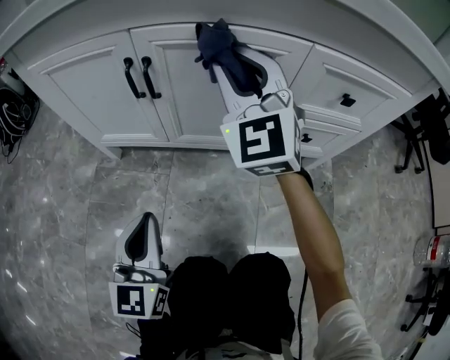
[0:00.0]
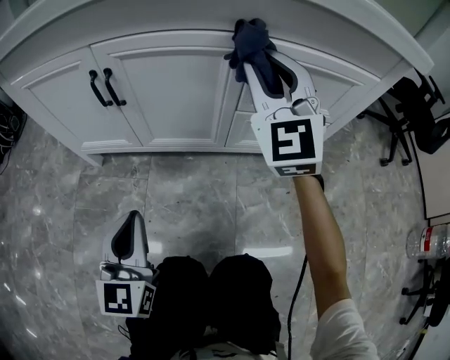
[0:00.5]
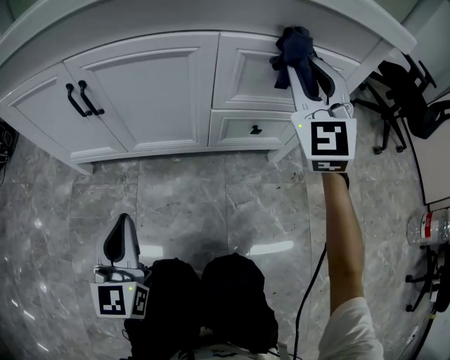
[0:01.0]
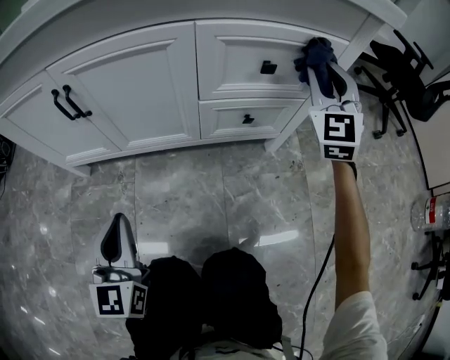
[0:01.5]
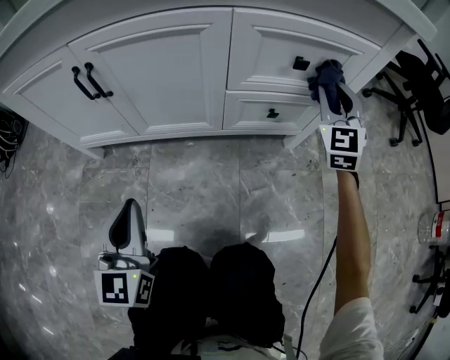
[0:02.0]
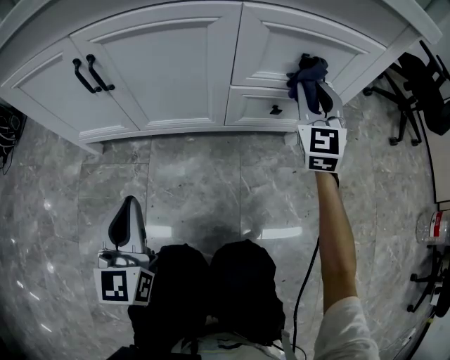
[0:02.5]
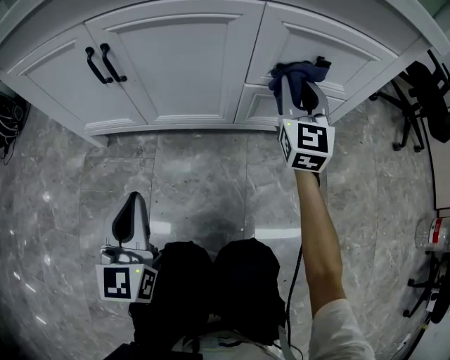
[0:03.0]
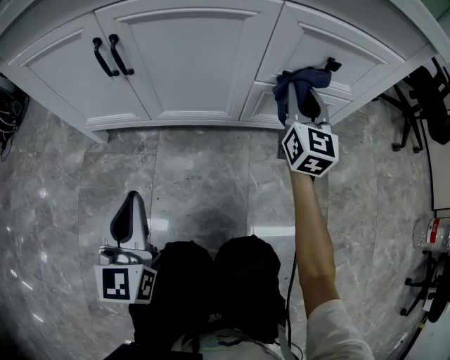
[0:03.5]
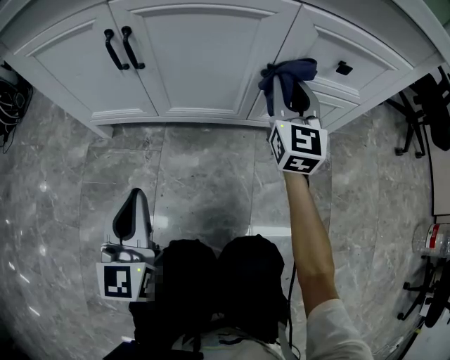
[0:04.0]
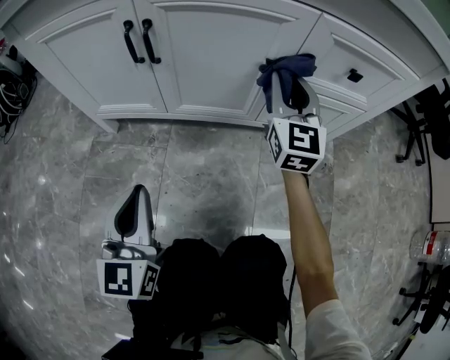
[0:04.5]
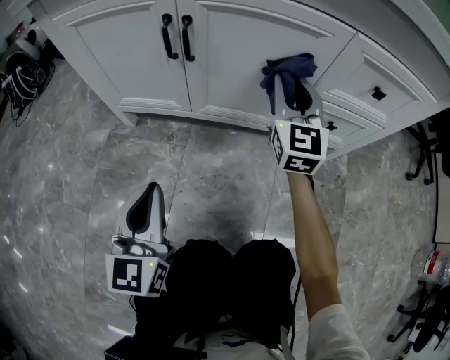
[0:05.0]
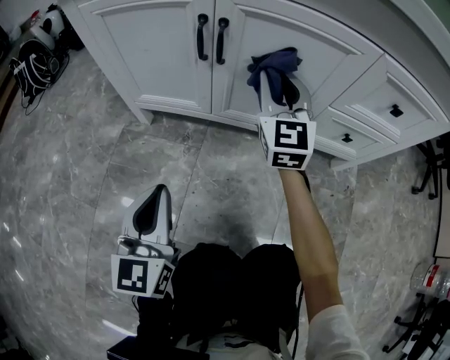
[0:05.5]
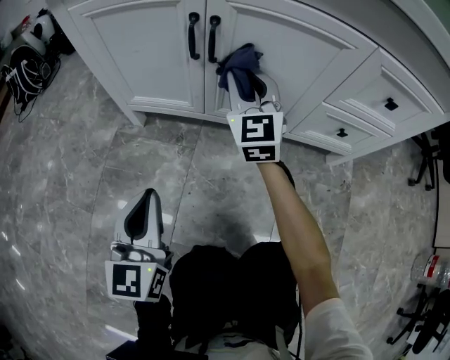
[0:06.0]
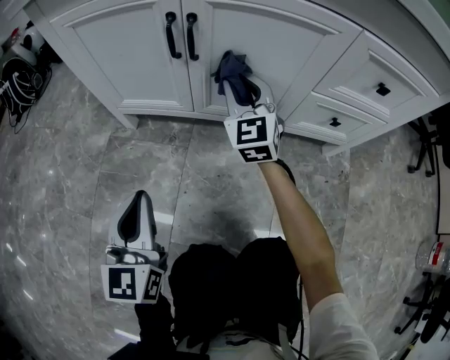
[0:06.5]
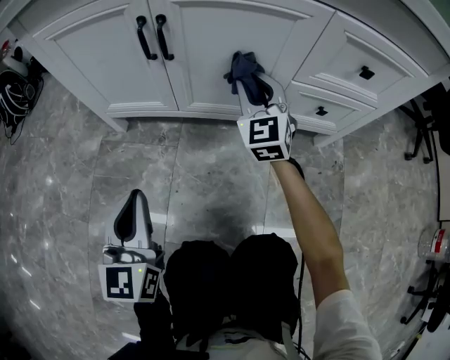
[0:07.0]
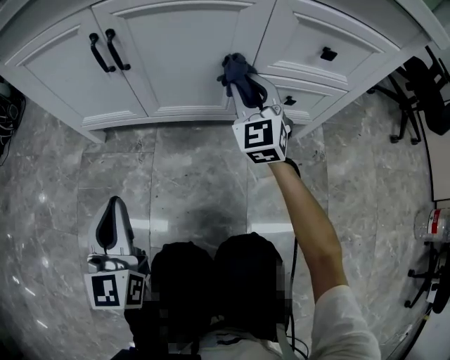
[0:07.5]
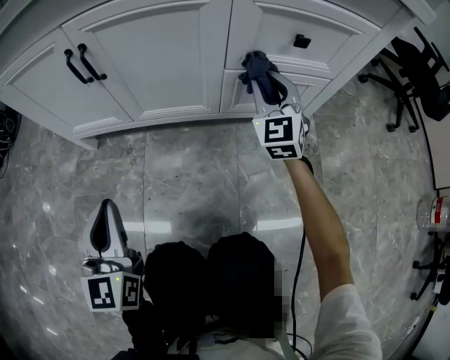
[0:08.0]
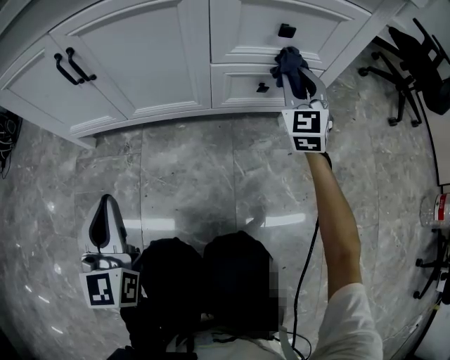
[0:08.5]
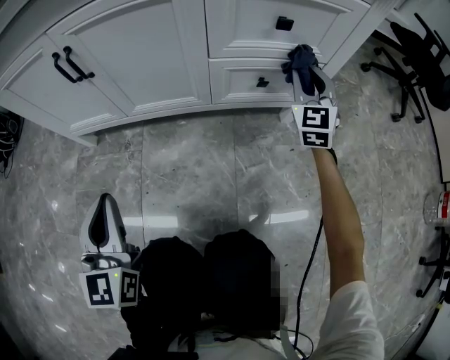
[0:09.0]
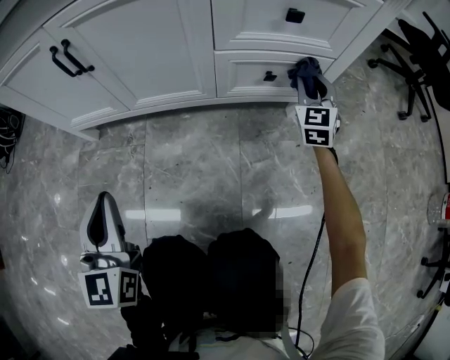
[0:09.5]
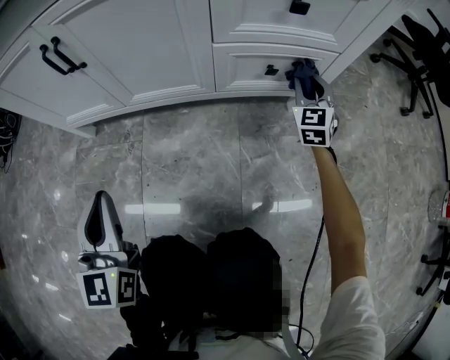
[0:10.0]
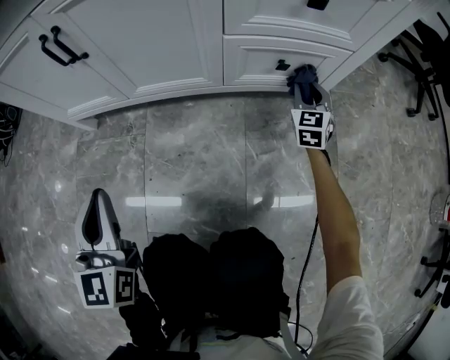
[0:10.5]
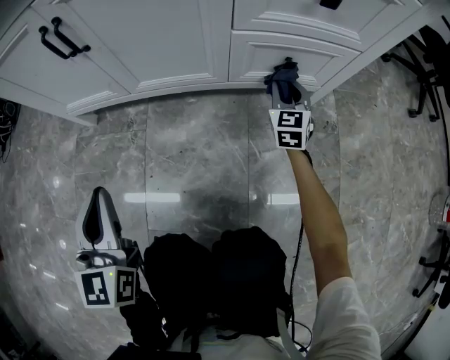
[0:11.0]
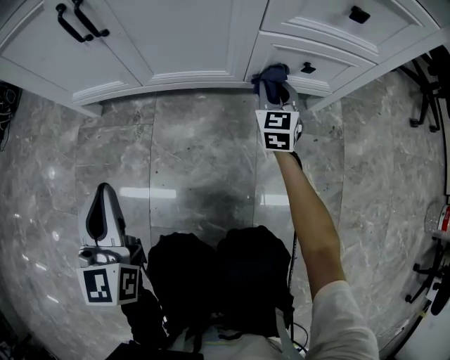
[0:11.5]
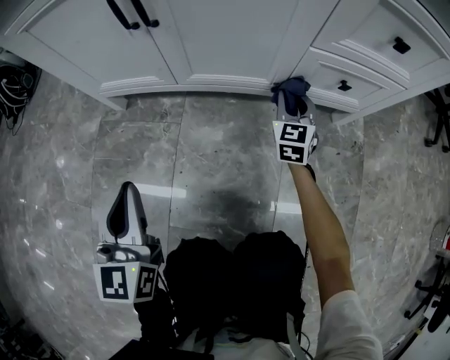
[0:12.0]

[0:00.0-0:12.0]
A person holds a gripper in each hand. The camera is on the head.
0:00.0 to 0:02.0: The right gripper is displaced to the right by about 35 cm, and rotates approximately 30 degrees; the left gripper shifts roughly 5 cm to the right.
0:02.0 to 0:04.0: The left gripper moves about 5 cm, while the right gripper travels to the left by about 20 cm, and rotates roughly 30 degrees.
0:04.0 to 0:06.0: The right gripper moves to the left, approximately 25 cm, and swivels roughly 20 degrees; the left gripper travels to the left by roughly 10 cm.
0:06.0 to 0:08.0: The left gripper goes about 10 cm to the right. The right gripper goes about 30 cm to the right, and swivels roughly 20 degrees.
0:08.0 to 0:10.0: The right gripper heads to the right and downward, covering about 20 cm.
0:10.0 to 0:12.0: The left gripper goes approximately 10 cm to the left, while the right gripper travels to the left by about 20 cm.

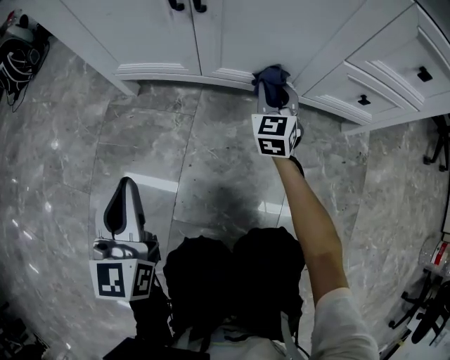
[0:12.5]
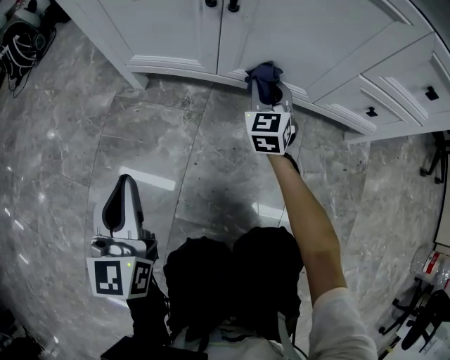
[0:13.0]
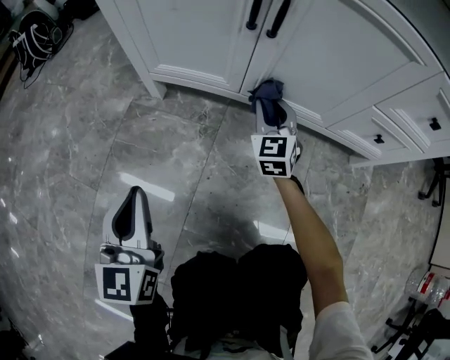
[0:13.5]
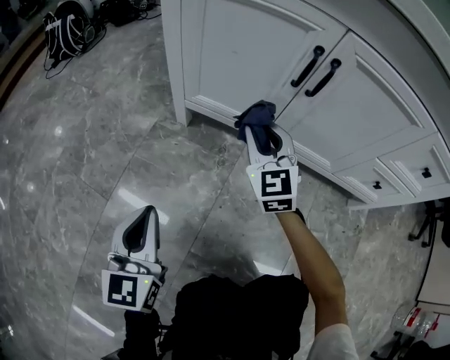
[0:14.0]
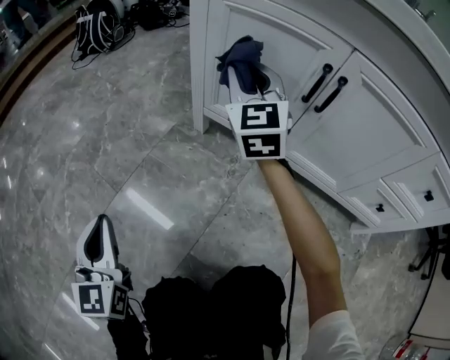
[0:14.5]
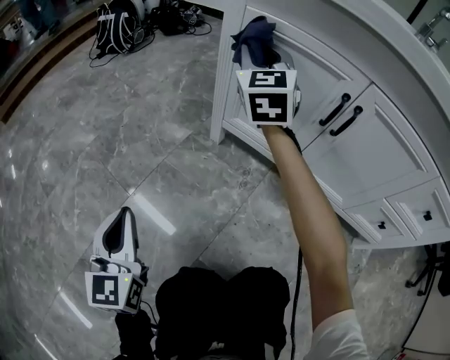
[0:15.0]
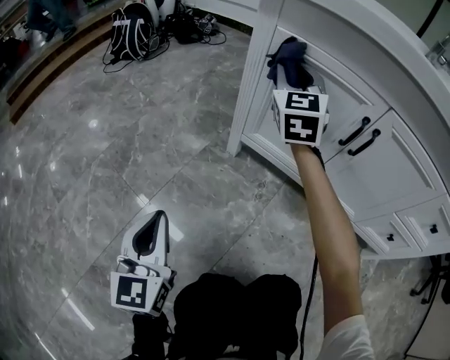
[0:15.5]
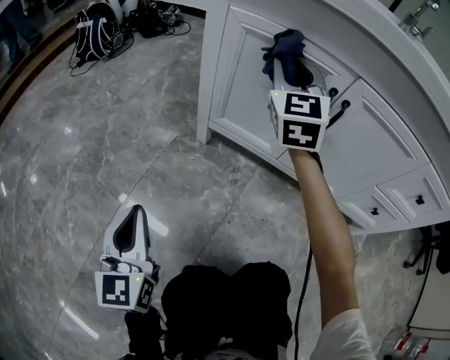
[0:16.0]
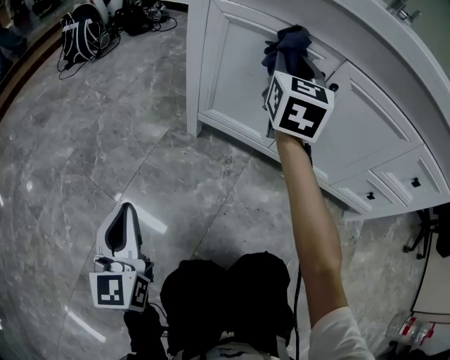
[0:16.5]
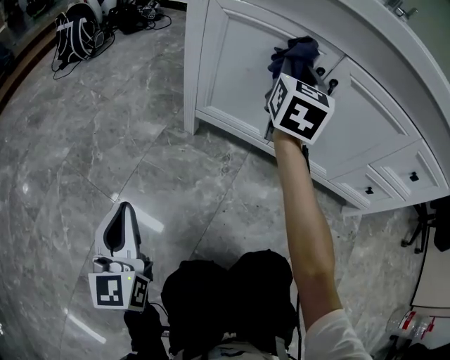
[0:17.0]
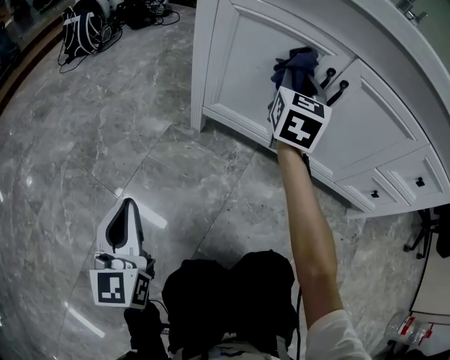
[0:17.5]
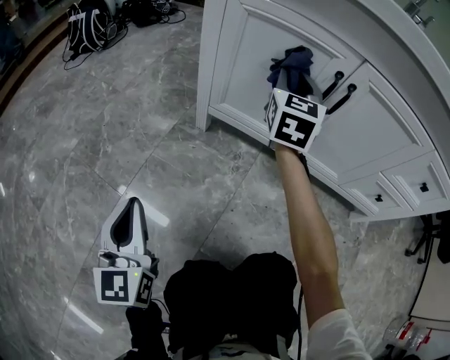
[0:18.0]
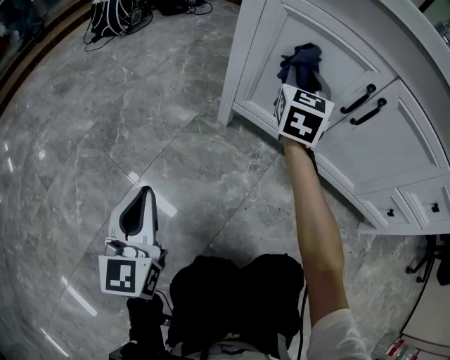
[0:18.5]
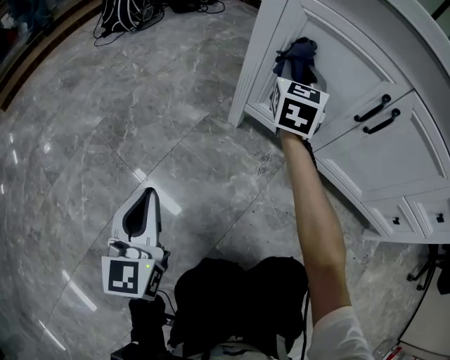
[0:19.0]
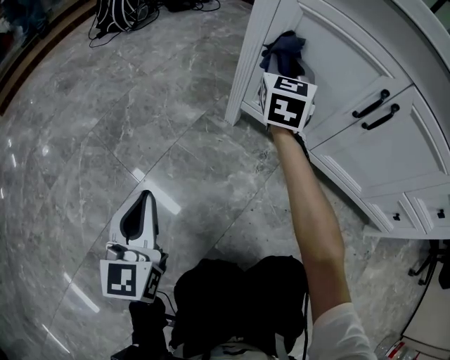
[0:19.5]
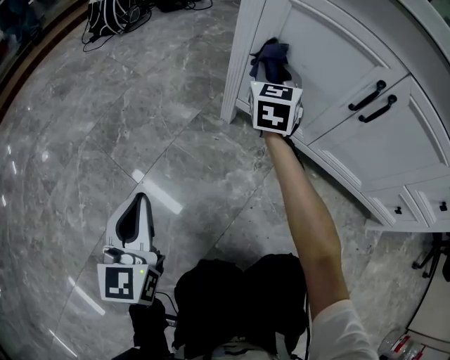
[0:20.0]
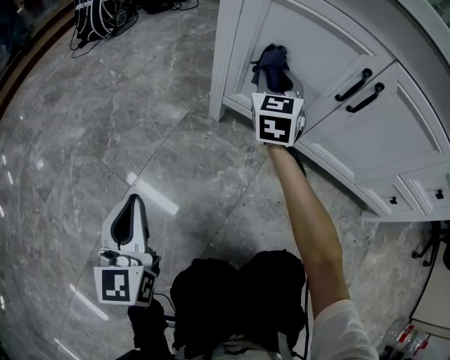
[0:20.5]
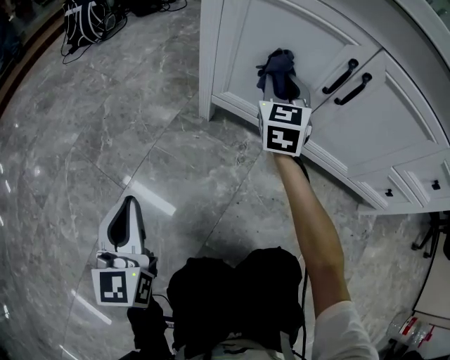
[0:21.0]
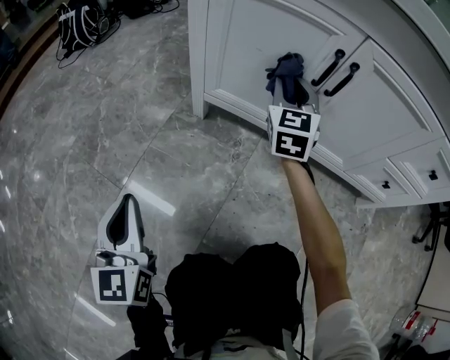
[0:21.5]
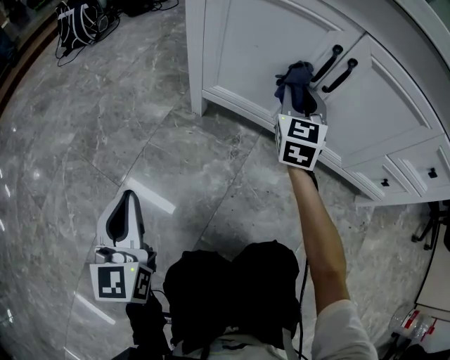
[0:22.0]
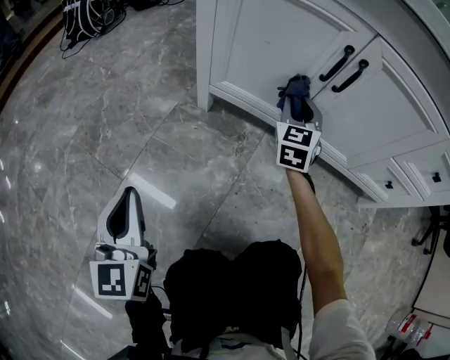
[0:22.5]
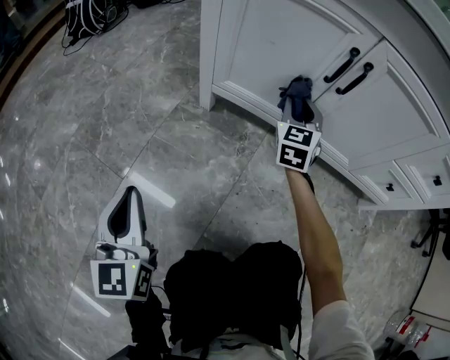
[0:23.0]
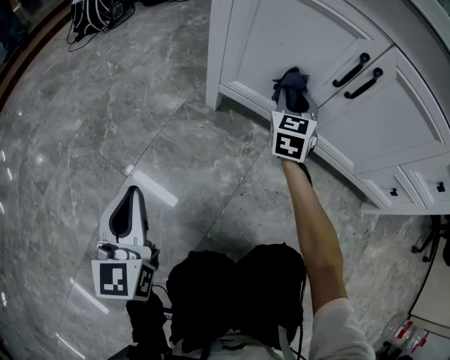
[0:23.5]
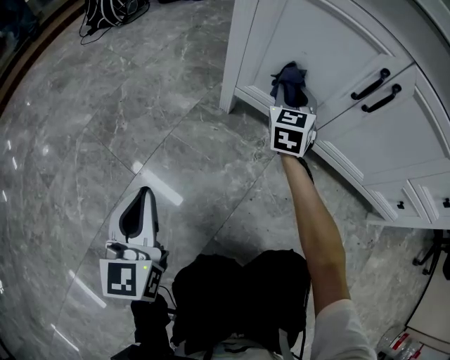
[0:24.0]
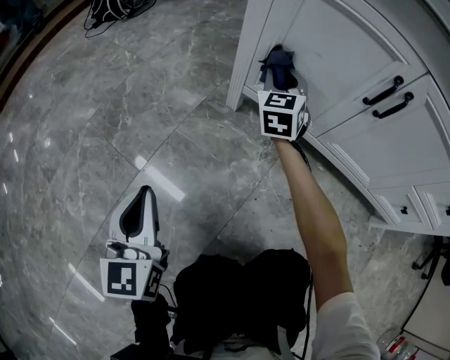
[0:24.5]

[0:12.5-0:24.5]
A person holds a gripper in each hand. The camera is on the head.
0:12.5 to 0:14.5: The right gripper ends up some 40 cm from where it was, and turns by roughly 40 degrees, while the left gripper shifts by about 25 cm, and swivels roughly 30 degrees.
0:14.5 to 0:16.5: The left gripper changes place by roughly 5 cm. The right gripper travels to the right and upward by about 10 cm, and turns by some 30 degrees.
0:16.5 to 0:18.5: The right gripper shifts some 10 cm downward and to the left.
0:18.5 to 0:20.5: The right gripper travels downward by some 5 cm.
0:20.5 to 0:22.5: The right gripper heads to the right, backward and downward, covering roughly 15 cm.
0:22.5 to 0:24.5: The right gripper moves to the left and forward, roughly 20 cm.

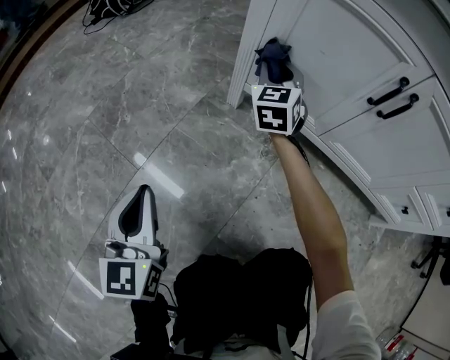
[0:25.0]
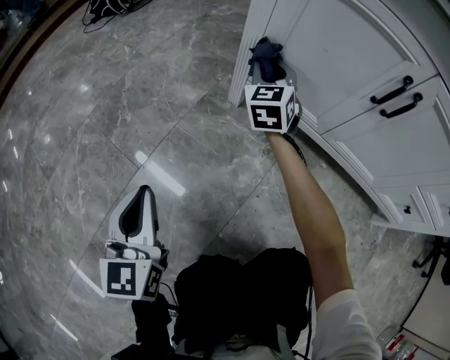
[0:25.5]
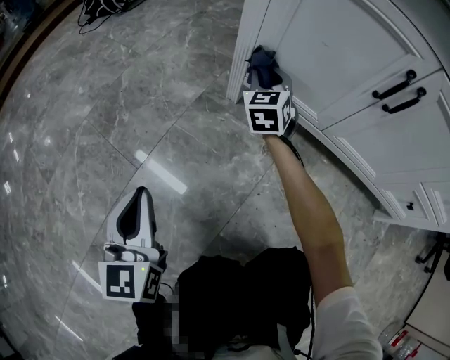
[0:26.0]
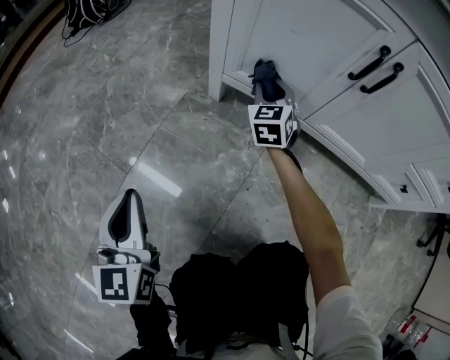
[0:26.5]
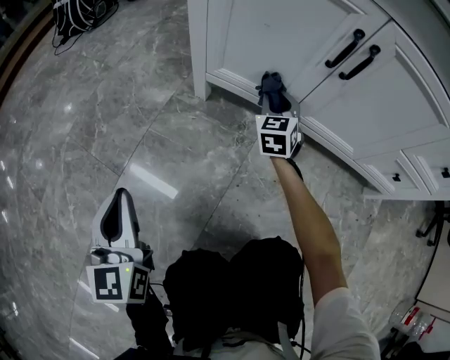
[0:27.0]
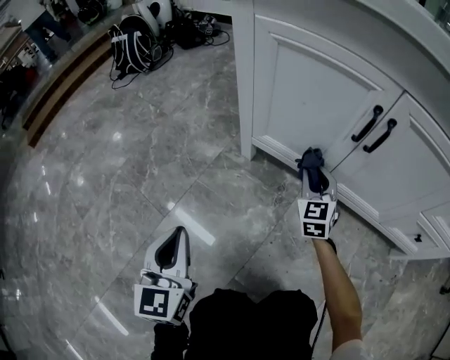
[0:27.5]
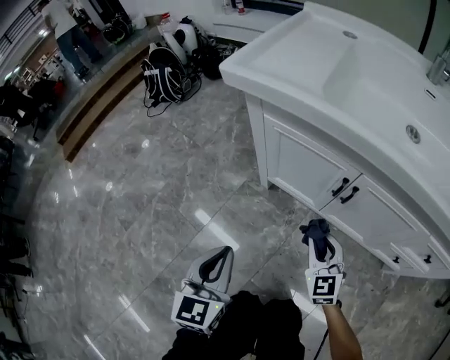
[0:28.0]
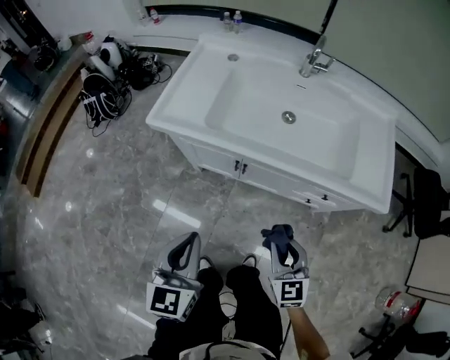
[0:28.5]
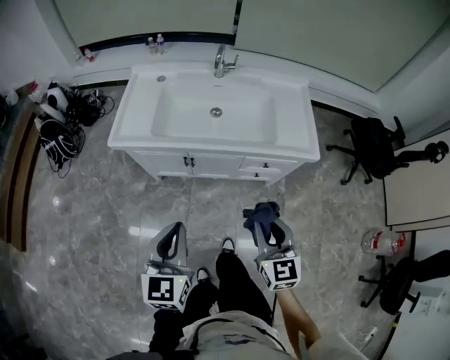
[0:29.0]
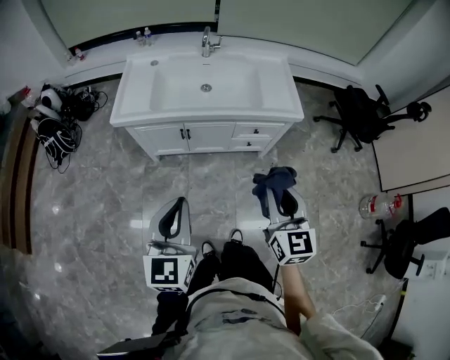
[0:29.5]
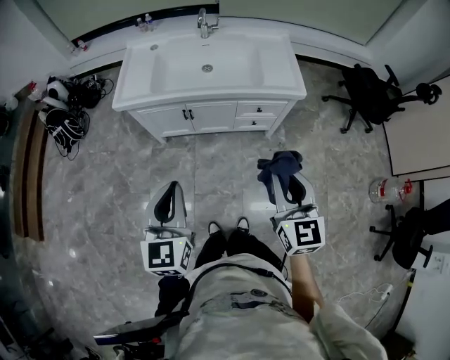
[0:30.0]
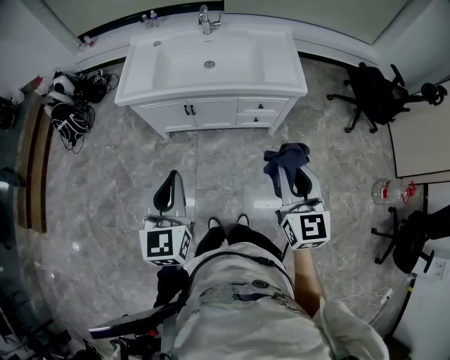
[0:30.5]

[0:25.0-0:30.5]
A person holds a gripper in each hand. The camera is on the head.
0:25.0 to 0:27.0: The right gripper moves to the right, downward and backward, about 20 cm.
0:27.0 to 0:28.5: The left gripper travels upward and to the right by about 60 cm, and turns by approximately 20 degrees. Meanwhile the right gripper goes about 60 cm upward and backward.
0:28.5 to 0:30.5: The grippers both shift upward, backward and to the right by approximately 35 cm. The right gripper rotates roughly 30 degrees.
